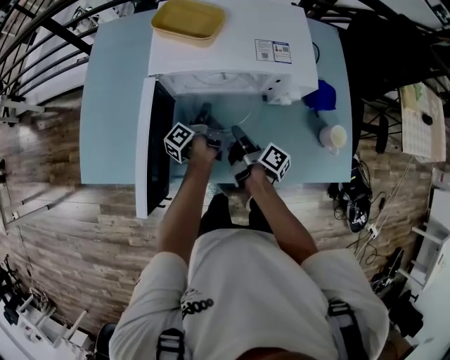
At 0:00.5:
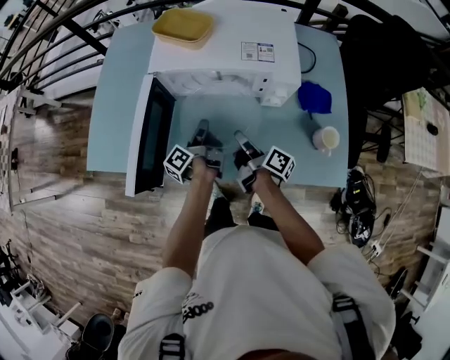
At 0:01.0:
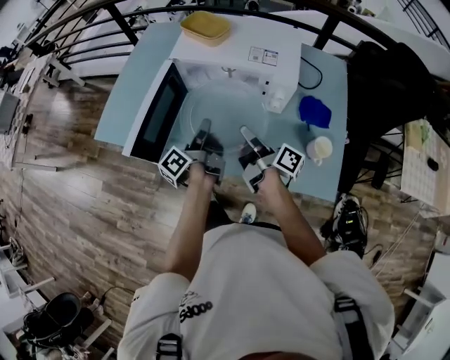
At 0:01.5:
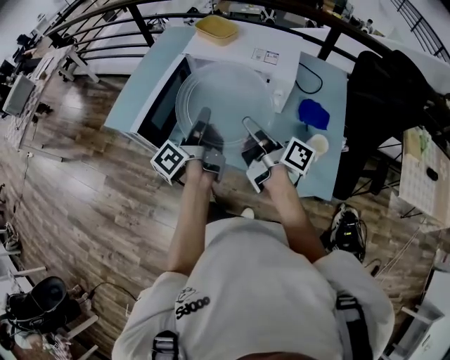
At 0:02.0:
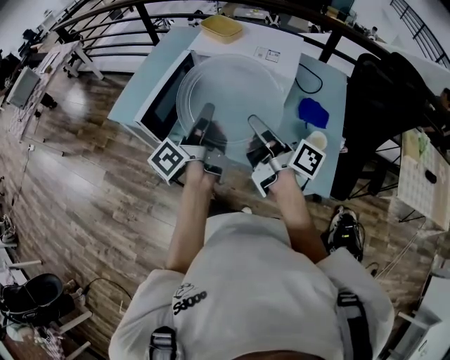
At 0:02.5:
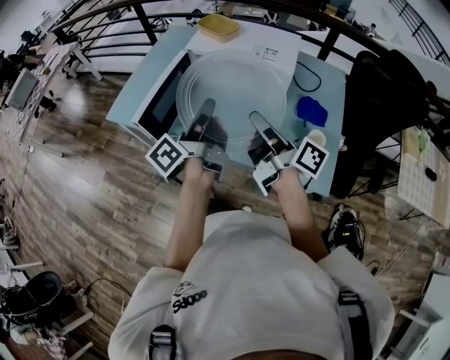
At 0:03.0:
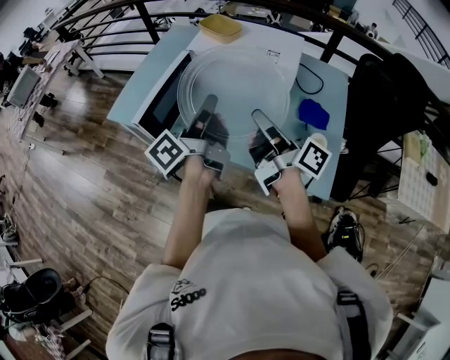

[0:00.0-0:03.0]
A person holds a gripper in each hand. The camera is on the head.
0:00.0 to 0:01.5: Both grippers move upward and backward, about 30 cm. The left gripper changes its angle by approximately 30 degrees. The right gripper turns by approximately 40 degrees.
0:01.5 to 0:03.0: The two grippers go roughly 5 cm upward.

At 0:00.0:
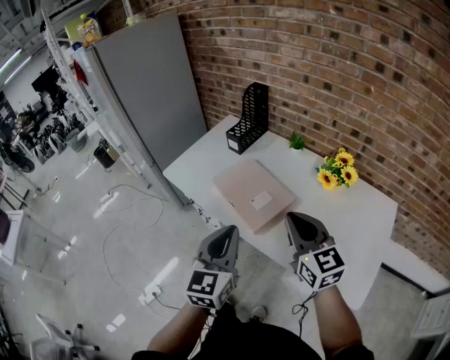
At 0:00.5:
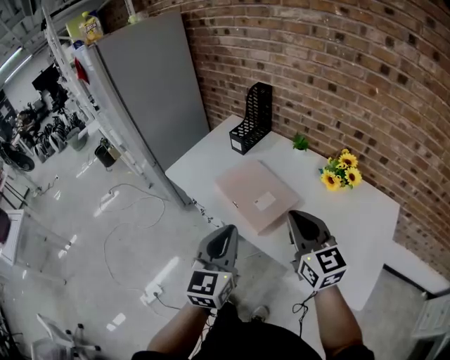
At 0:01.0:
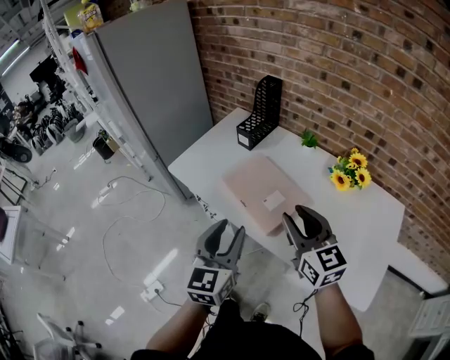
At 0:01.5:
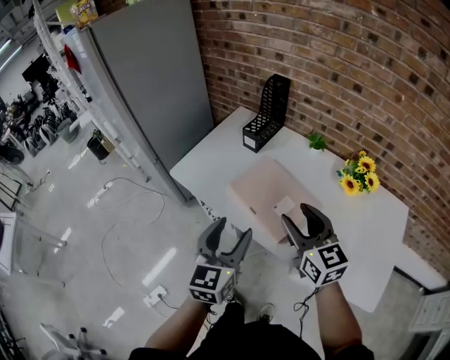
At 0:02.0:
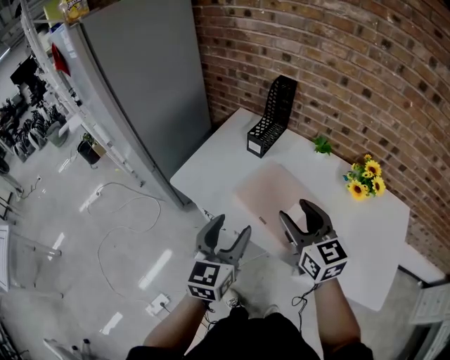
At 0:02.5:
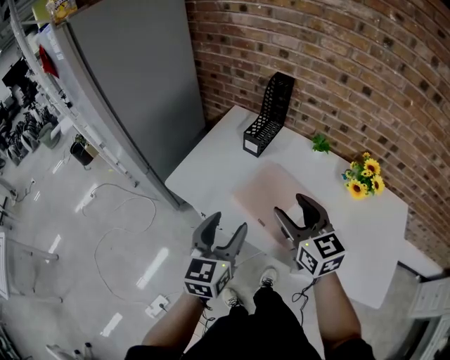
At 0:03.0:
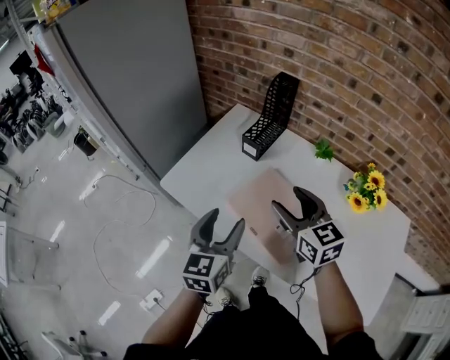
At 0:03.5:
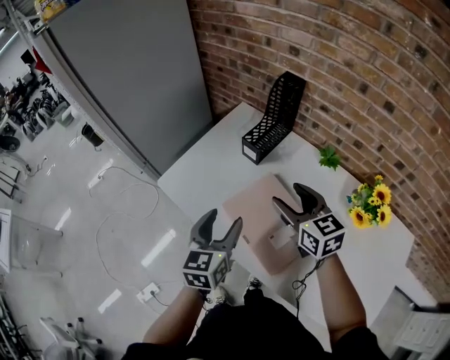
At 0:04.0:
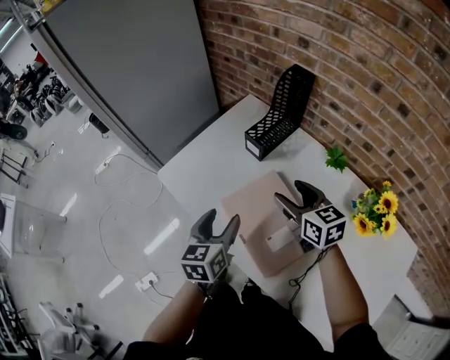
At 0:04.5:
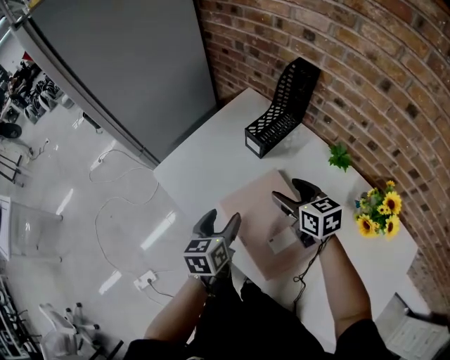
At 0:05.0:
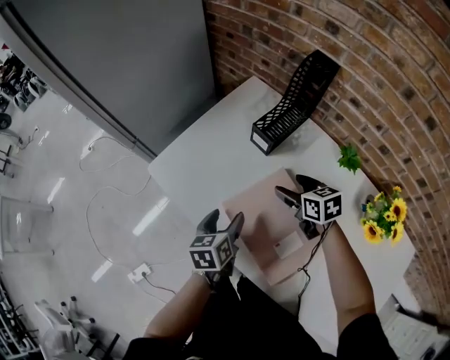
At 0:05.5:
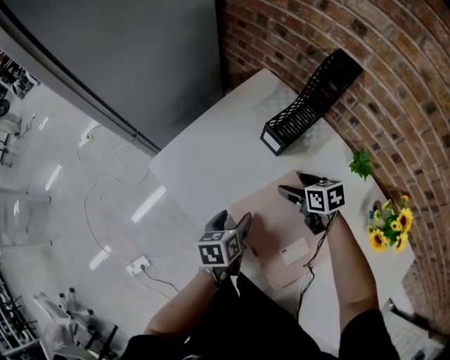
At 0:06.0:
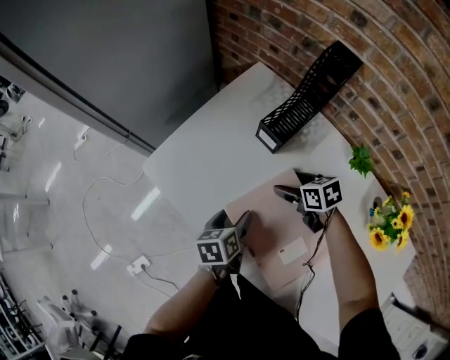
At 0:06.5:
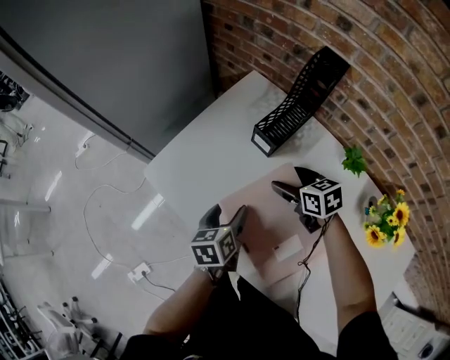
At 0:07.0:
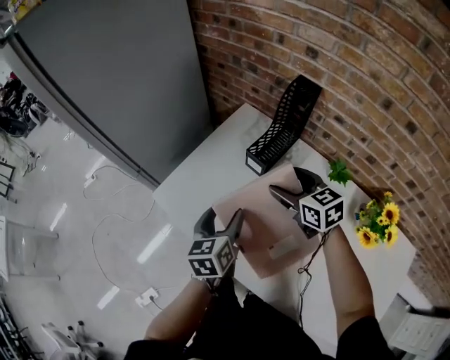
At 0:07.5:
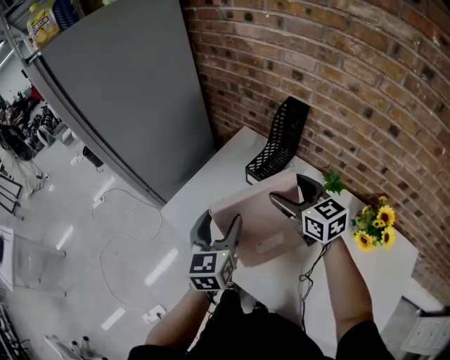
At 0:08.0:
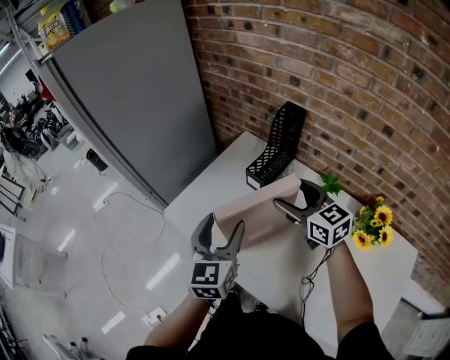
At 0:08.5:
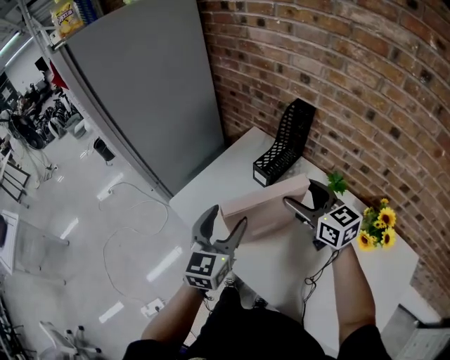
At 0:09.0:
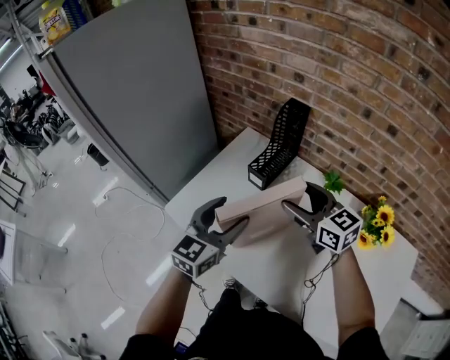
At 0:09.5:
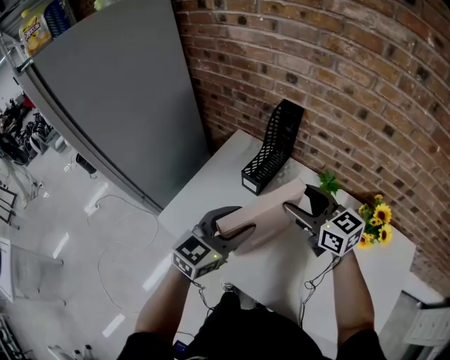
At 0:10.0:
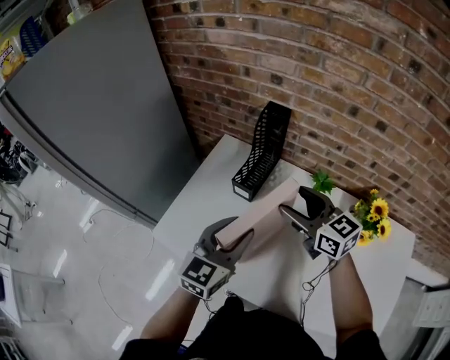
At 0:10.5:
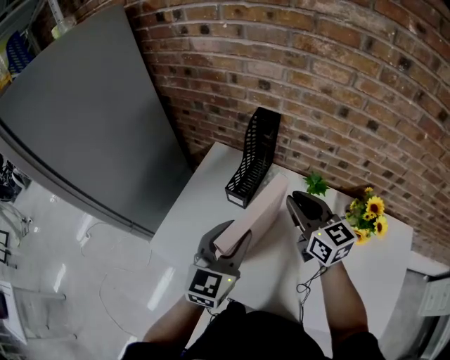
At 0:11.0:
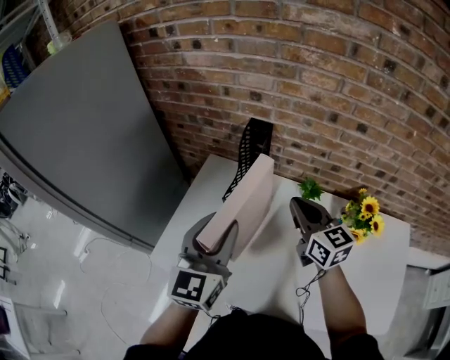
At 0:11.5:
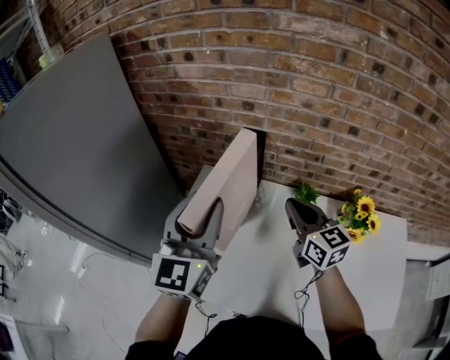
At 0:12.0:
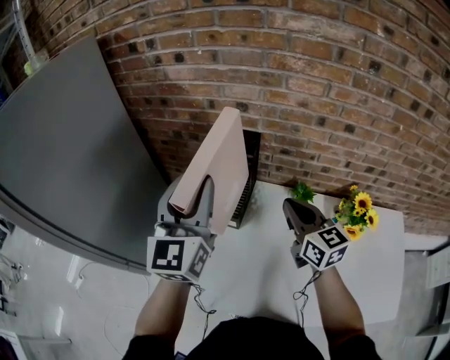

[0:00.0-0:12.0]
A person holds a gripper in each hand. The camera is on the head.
0:00.0 to 0:02.0: The grippers both shift forward and to the left by approximately 20 cm. The left gripper opens its fingers; the right gripper opens its fingers.
0:02.0 to 0:04.0: Both grippers travel together forward, downward and to the right, about 20 cm. The right gripper changes its angle by approximately 20 degrees. The left gripper rotates about 20 degrees.
0:04.0 to 0:06.0: The right gripper goes approximately 20 cm downward and forward, and turns by about 30 degrees. Meanwhile the left gripper is displaced downward by approximately 15 cm, and turns by roughly 30 degrees.
0:06.0 to 0:08.0: The two grippers go some 30 cm upward. The right gripper tips its fingers upward by some 40 degrees. Meanwhile the left gripper angles its fingers upward, by approximately 30 degrees.
0:08.0 to 0:10.0: The left gripper travels to the right by approximately 5 cm, rotates some 40 degrees, and closes up.
0:10.0 to 0:12.0: The left gripper goes some 25 cm upward, forward and to the left, and changes its angle by some 20 degrees; the right gripper shifts by roughly 5 cm, rotates some 30 degrees, and closes.

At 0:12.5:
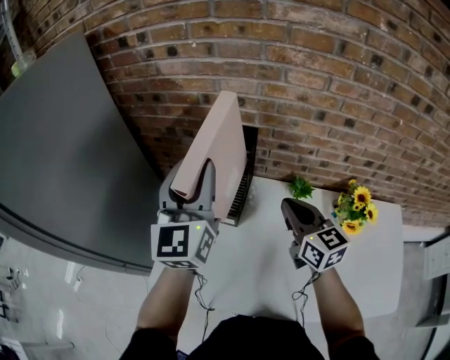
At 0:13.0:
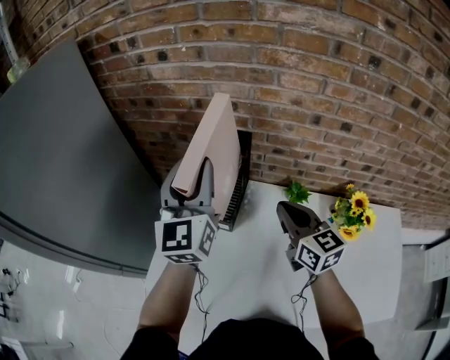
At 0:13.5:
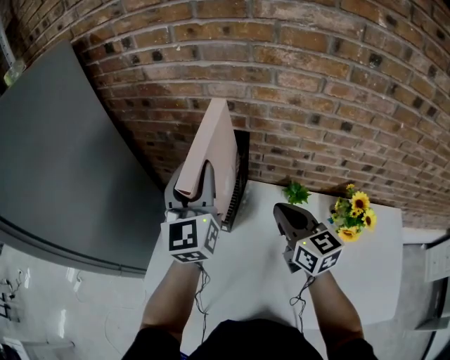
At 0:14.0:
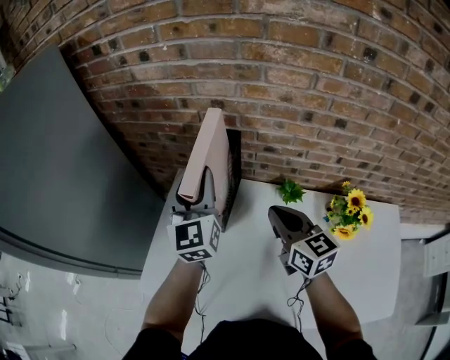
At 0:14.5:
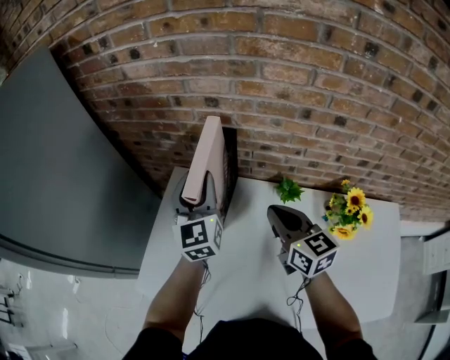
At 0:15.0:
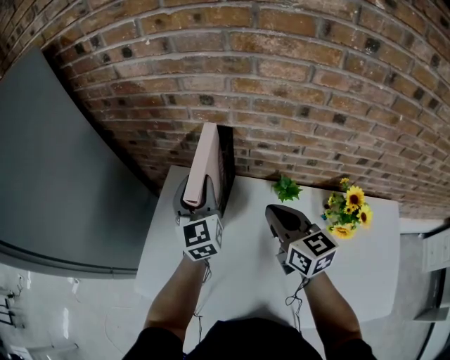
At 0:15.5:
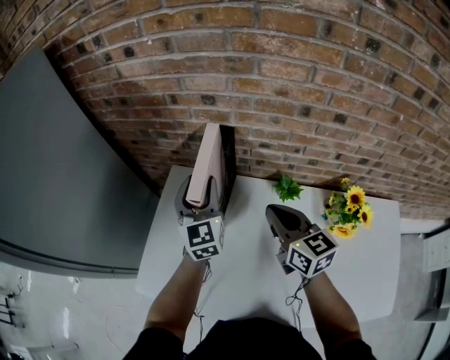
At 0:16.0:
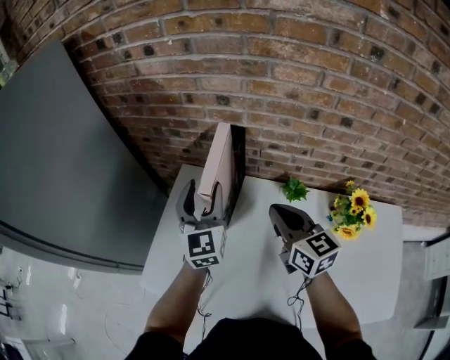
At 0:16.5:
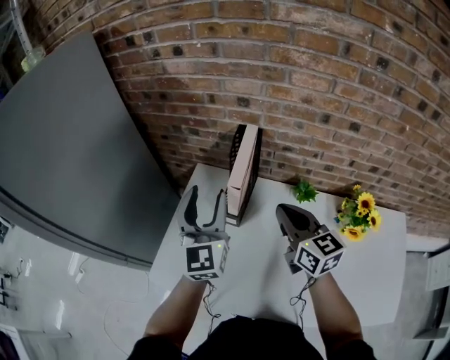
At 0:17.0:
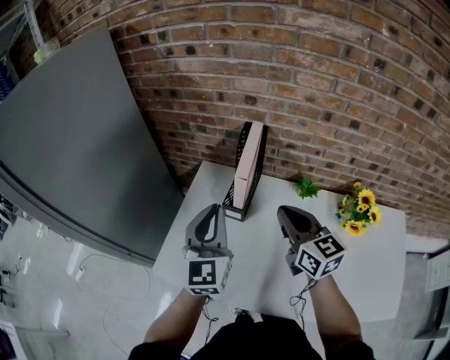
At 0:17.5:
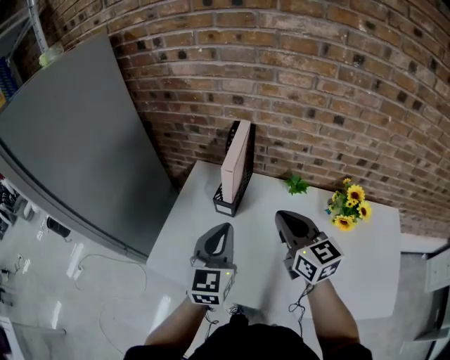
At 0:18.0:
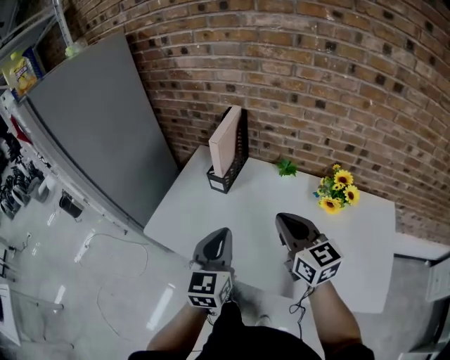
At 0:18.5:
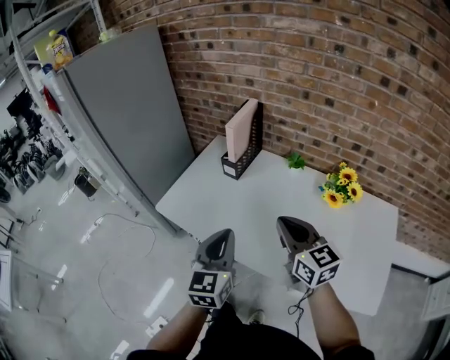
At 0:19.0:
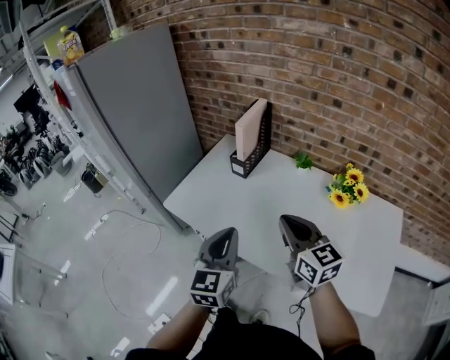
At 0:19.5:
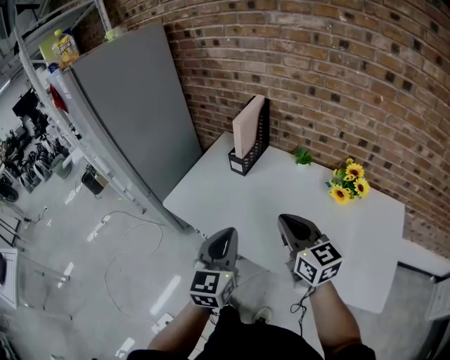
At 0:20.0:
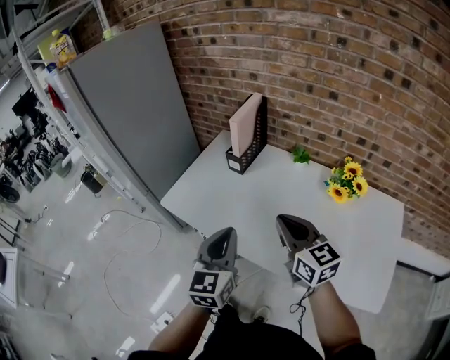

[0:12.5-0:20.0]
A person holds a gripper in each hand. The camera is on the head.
0:12.5 to 0:14.5: The right gripper ends up some 5 cm from where it was. The left gripper shifts approximately 15 cm downward, to the right and forward.
0:14.5 to 0:16.5: The left gripper is displaced backward and to the left by some 10 cm. Meanwhile the right gripper changes place by approximately 5 cm.
0:16.5 to 0:18.0: The two grippers go about 25 cm backward. The left gripper closes its fingers.
0:18.0 to 0:20.0: Both grippers travel together backward, approximately 10 cm.

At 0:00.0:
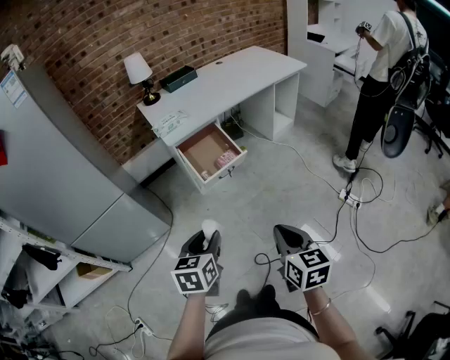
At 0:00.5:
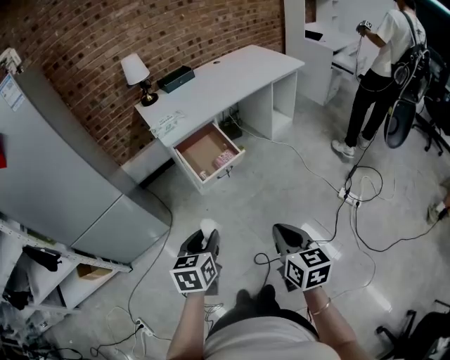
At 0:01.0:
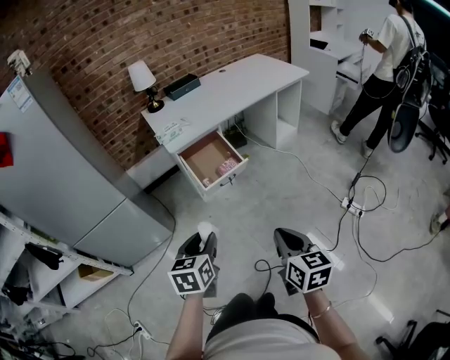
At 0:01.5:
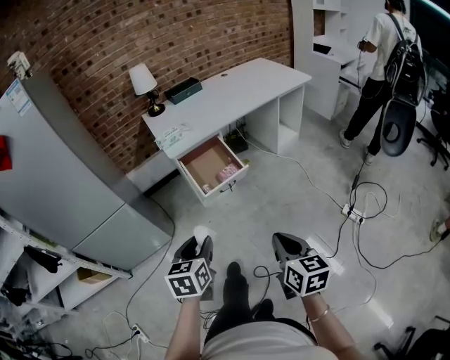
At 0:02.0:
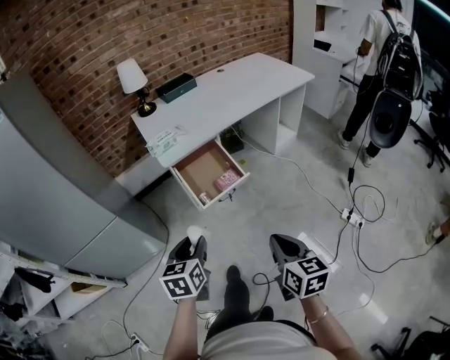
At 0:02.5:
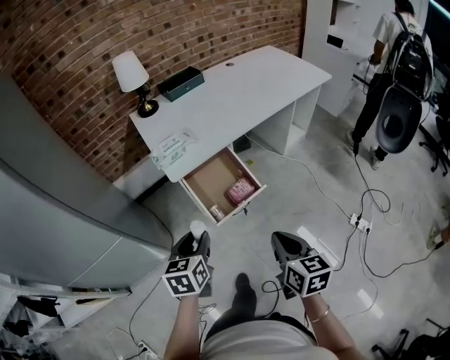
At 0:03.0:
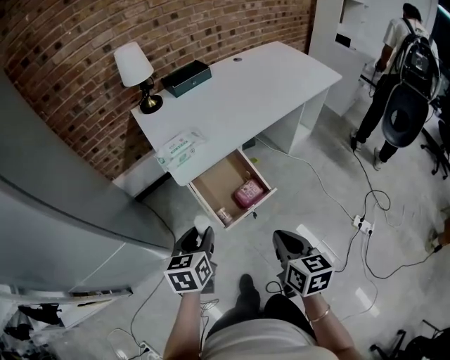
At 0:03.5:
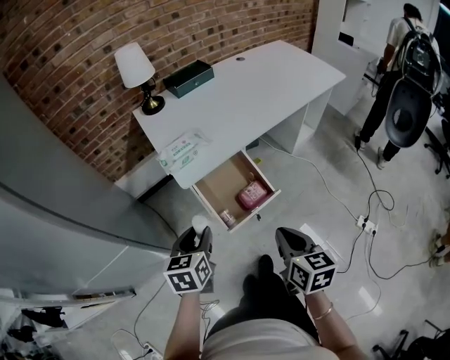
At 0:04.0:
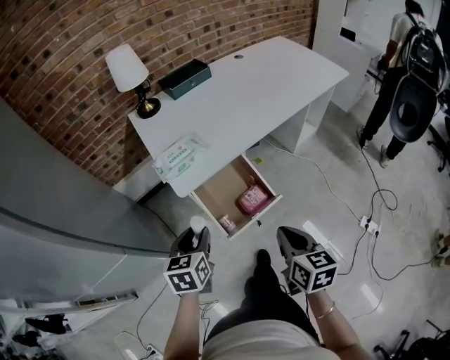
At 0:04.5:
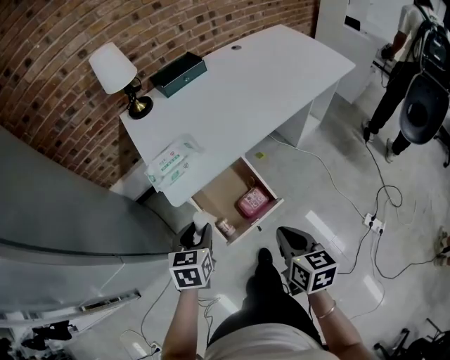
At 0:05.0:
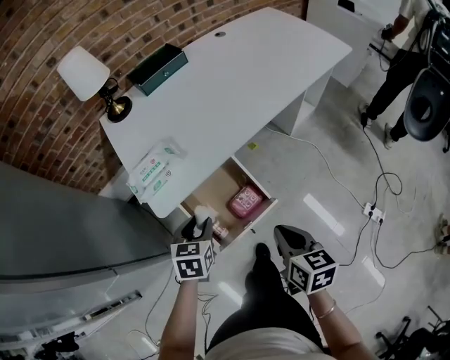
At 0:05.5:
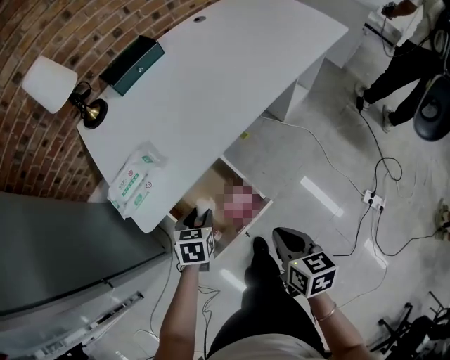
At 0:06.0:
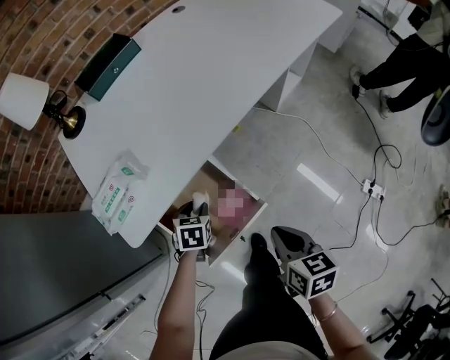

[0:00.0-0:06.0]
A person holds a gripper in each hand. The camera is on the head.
0:00.0 to 0:02.0: Both grippers travel together forward, roughly 20 cm.
0:02.0 to 0:04.0: Both grippers travel together forward, about 35 cm.
0:04.0 to 0:06.0: The right gripper travels forward, downward and to the right by roughly 30 cm; the left gripper shifts approximately 40 cm downward, forward and to the right, and changes its angle by about 30 degrees.
